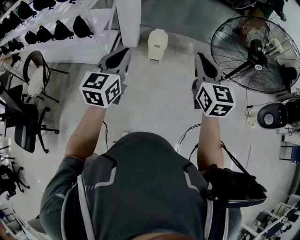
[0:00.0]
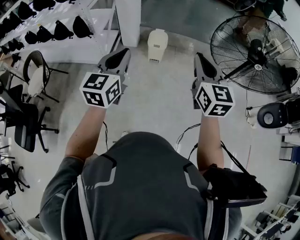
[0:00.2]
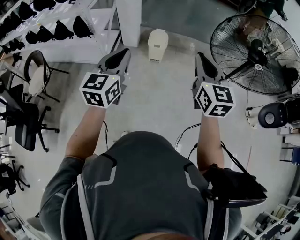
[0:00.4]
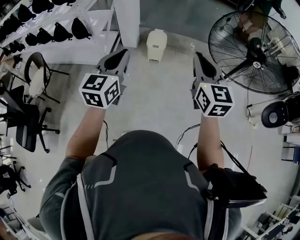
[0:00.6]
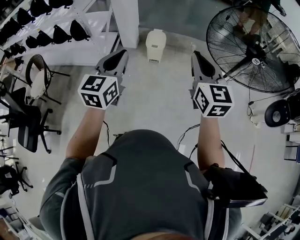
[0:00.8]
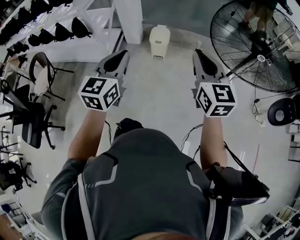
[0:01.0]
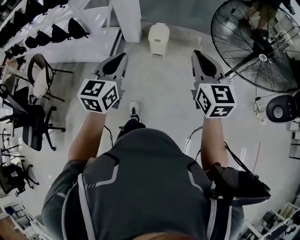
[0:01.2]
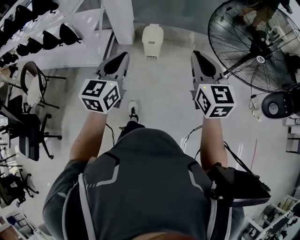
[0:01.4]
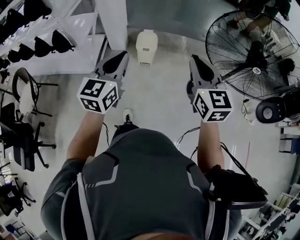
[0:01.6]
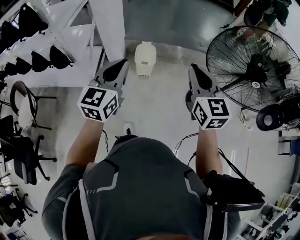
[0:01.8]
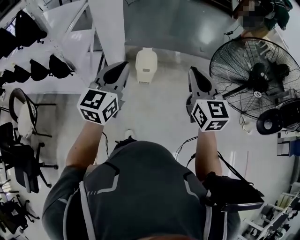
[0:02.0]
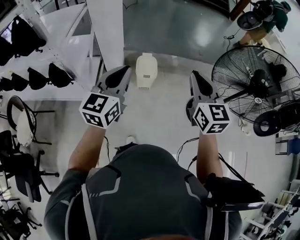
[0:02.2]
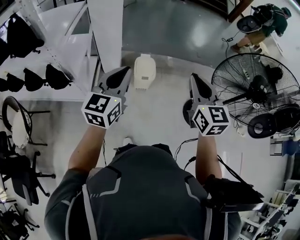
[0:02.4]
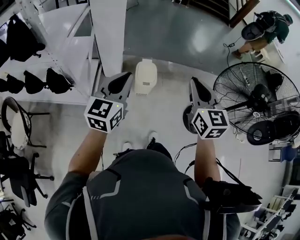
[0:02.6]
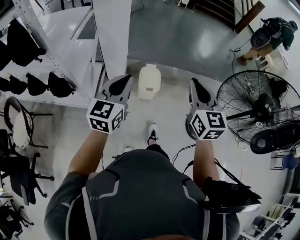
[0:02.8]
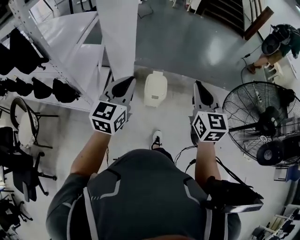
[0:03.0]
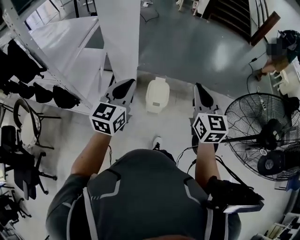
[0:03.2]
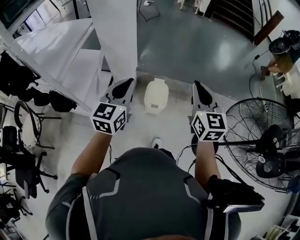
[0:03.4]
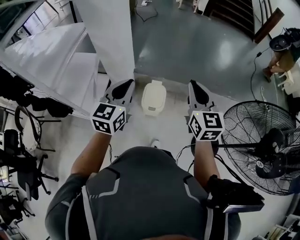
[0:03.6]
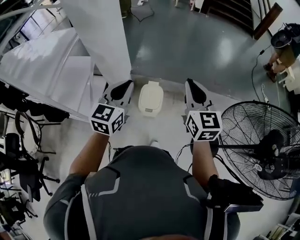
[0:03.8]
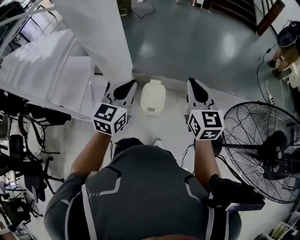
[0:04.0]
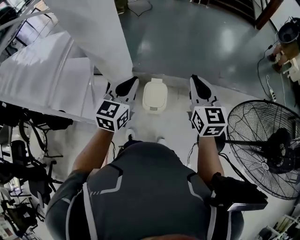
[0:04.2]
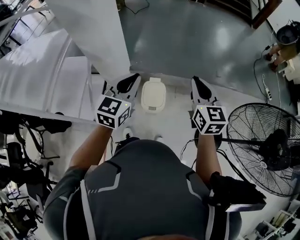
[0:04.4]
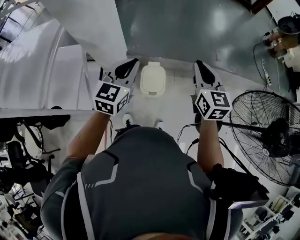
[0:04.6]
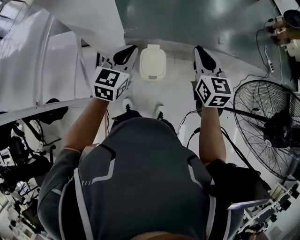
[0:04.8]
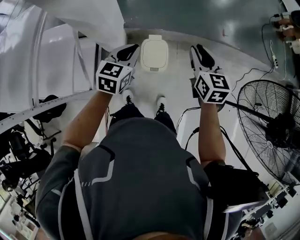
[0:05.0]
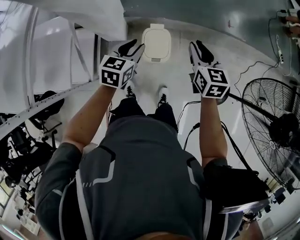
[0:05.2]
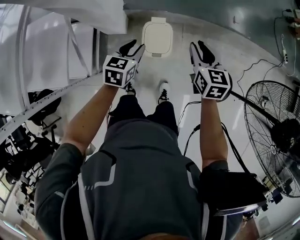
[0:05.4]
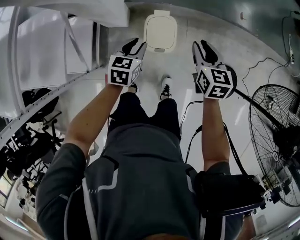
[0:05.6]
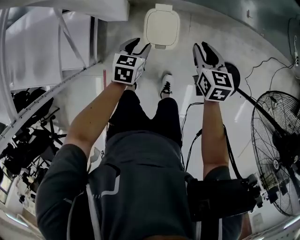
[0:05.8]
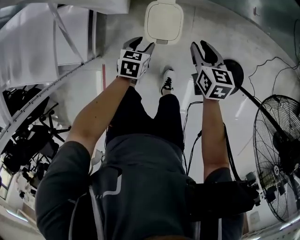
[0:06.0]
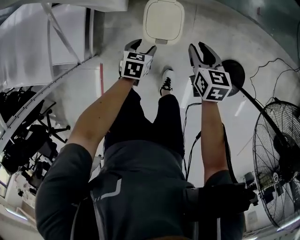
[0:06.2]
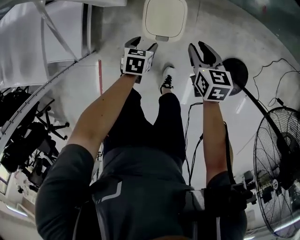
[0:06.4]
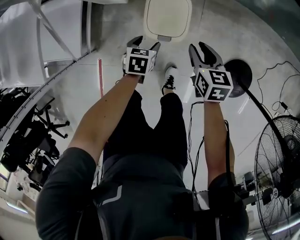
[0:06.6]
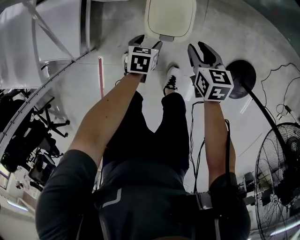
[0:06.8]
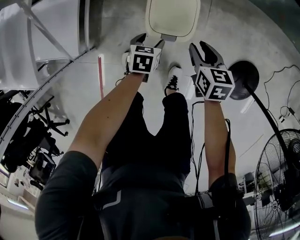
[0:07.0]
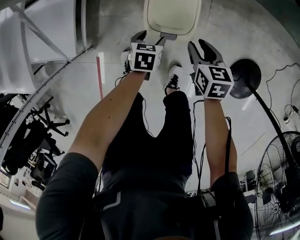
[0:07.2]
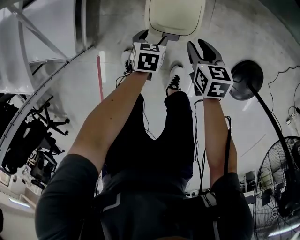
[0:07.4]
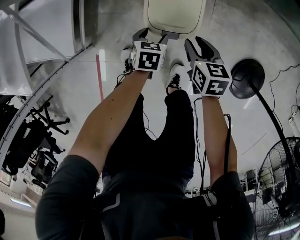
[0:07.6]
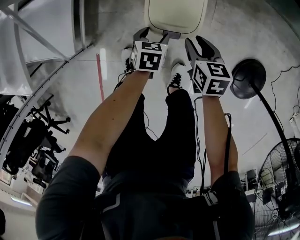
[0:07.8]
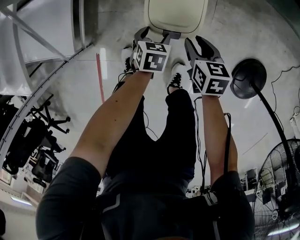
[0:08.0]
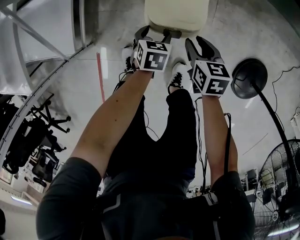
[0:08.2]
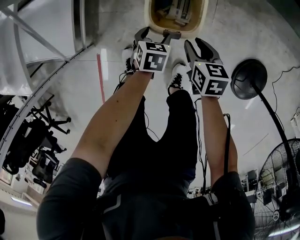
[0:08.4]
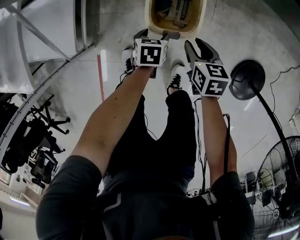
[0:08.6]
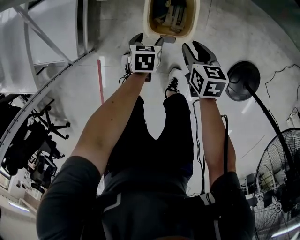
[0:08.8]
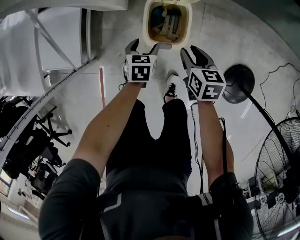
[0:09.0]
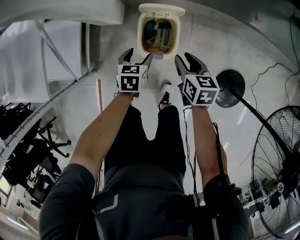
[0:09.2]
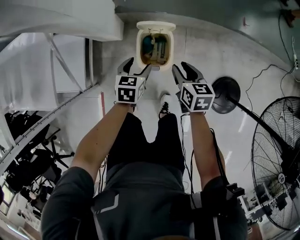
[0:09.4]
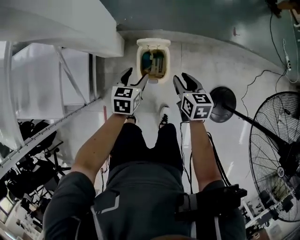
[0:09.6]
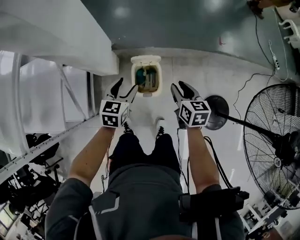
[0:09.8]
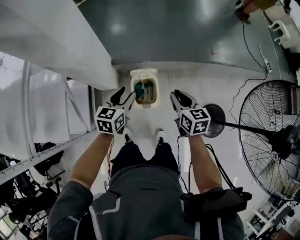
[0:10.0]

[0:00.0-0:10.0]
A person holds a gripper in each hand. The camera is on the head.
0:00.0 to 0:01.4: The right gripper goes approximately 5 cm forward. Meanwhile the left gripper moves forward and to the right, some 10 cm.
0:01.4 to 0:02.8: Both grippers travel together forward and to the left, some 35 cm.
0:02.8 to 0:04.2: The left gripper is displaced forward and to the right by roughly 30 cm. The right gripper shifts roughly 25 cm forward.
0:04.2 to 0:05.8: The two grippers go approximately 40 cm downward. The right gripper tips its fingers downward by about 30 degrees, and opens. The left gripper tips its fingers downward by some 40 degrees, and opens up.
0:05.8 to 0:07.2: The grippers both shift downward by roughly 30 cm. The left gripper swivels roughly 20 degrees, and opens its fingers.
0:07.2 to 0:08.6: The grippers make only small movements.
0:08.6 to 0:10.0: Both grippers move upward, some 40 cm. The left gripper points its fingers approximately 40 degrees further upward, while the right gripper changes its angle by some 20 degrees.

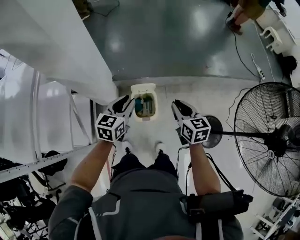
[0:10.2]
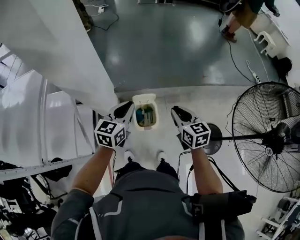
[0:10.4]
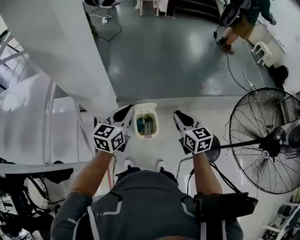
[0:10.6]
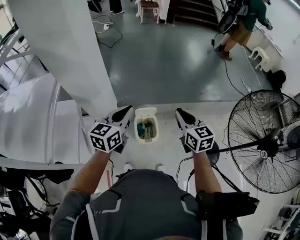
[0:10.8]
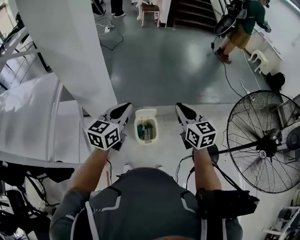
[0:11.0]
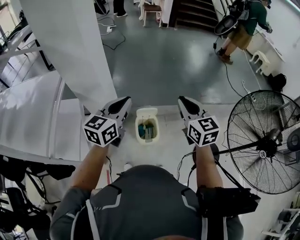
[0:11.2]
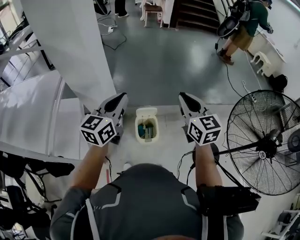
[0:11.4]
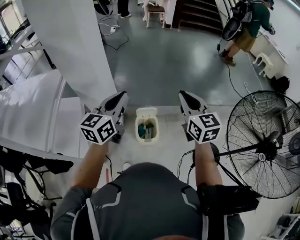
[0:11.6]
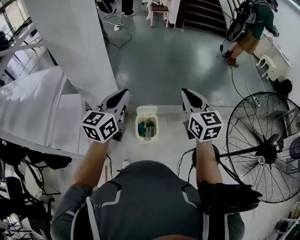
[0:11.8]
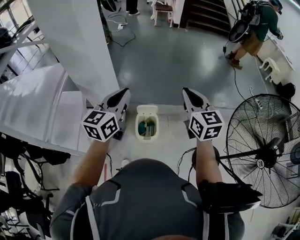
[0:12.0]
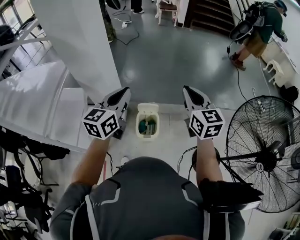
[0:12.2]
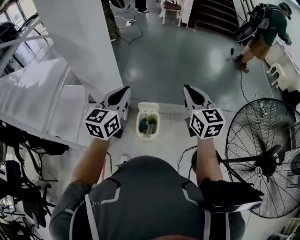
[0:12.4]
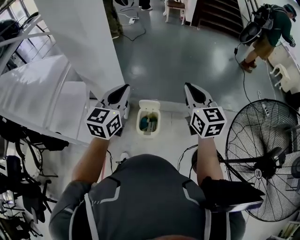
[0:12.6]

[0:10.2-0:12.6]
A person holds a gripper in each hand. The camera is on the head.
0:10.2 to 0:11.4: Both grippers move upward, some 25 cm. The left gripper rotates approximately 20 degrees, and closes, while the right gripper swivels some 30 degrees.
0:11.4 to 0:12.6: The grippers both shift to the right by some 5 cm.

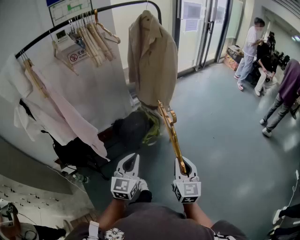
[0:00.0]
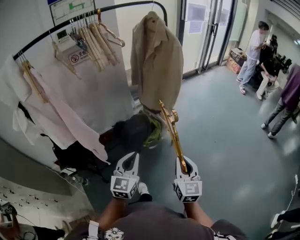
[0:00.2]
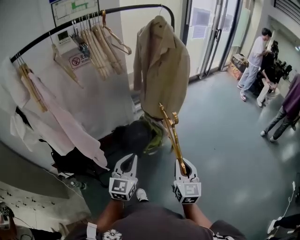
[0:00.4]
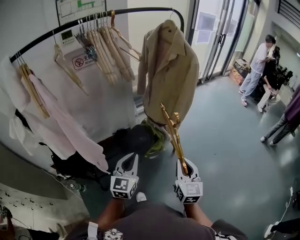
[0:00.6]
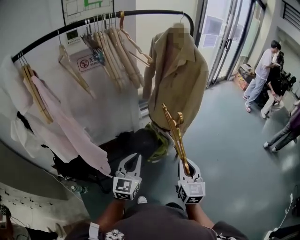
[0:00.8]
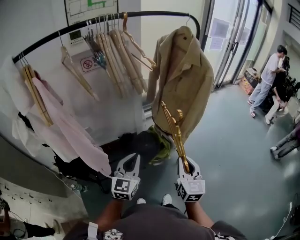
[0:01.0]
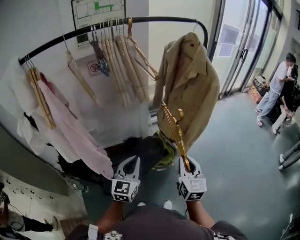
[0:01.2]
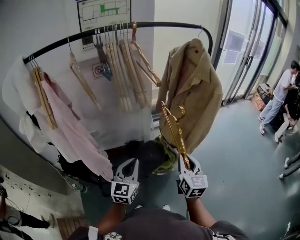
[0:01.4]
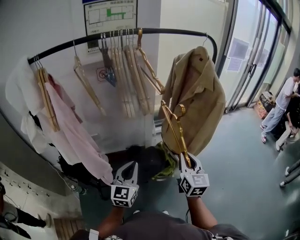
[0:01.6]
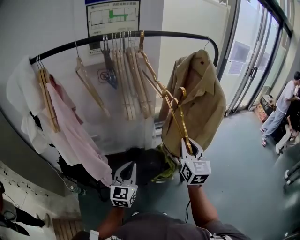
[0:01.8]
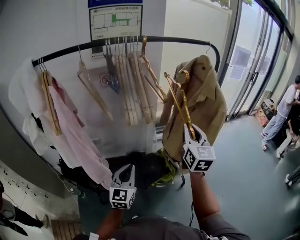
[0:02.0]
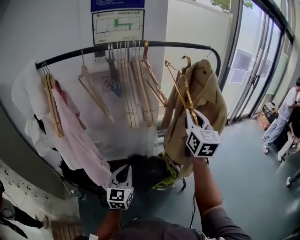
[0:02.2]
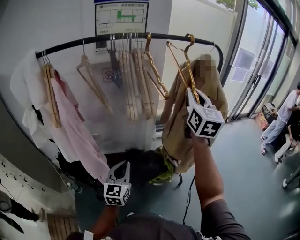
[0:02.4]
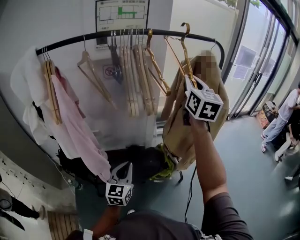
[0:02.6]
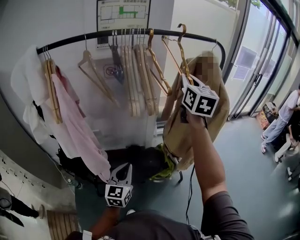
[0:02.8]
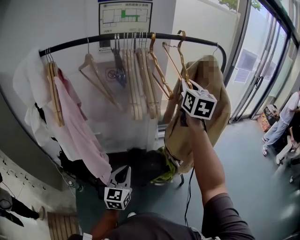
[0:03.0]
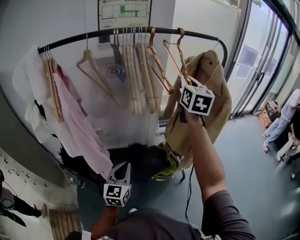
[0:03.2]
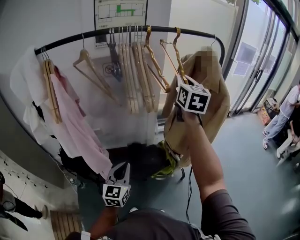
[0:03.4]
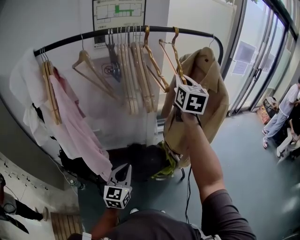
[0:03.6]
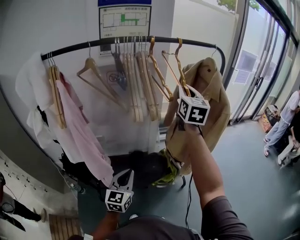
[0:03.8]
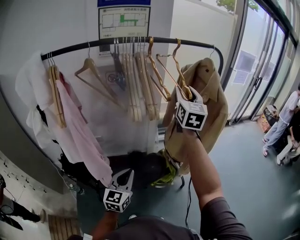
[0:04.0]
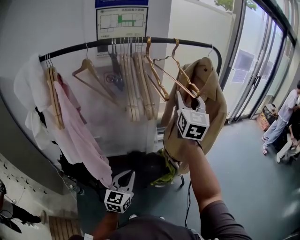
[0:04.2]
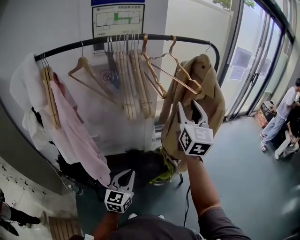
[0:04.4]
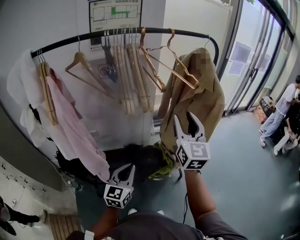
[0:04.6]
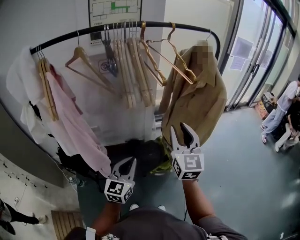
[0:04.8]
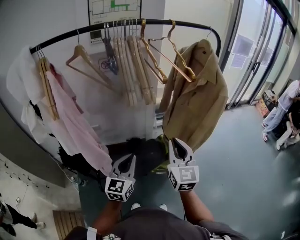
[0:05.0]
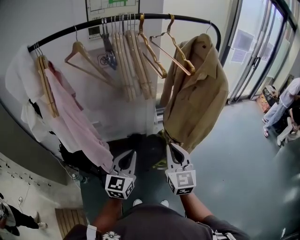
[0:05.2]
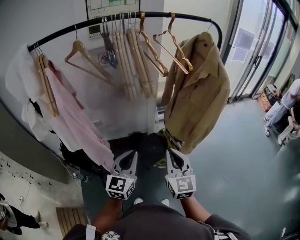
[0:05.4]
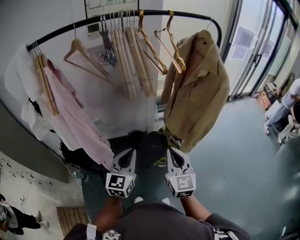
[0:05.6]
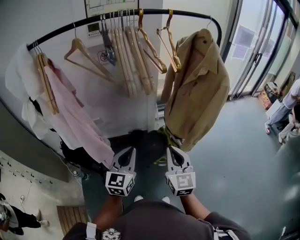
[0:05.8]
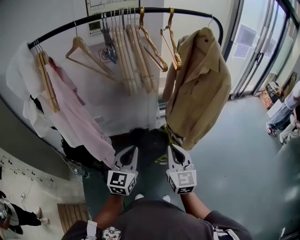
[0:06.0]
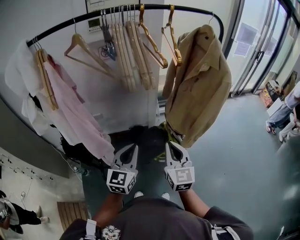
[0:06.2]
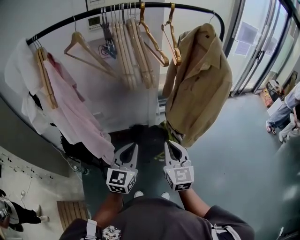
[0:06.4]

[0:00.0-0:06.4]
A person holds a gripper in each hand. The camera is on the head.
0:00.0 to 0:01.6: The right gripper heads forward, covering roughly 35 cm. Meanwhile the left gripper moves forward and to the left, about 25 cm.
0:01.6 to 0:03.2: The right gripper heads upward and forward, covering roughly 30 cm.
0:03.2 to 0:04.8: The right gripper is displaced backward and downward by approximately 25 cm, and opens up.
0:04.8 to 0:06.4: The right gripper heads downward and backward, covering some 15 cm, and closes up.

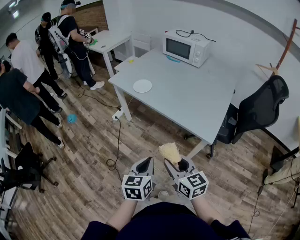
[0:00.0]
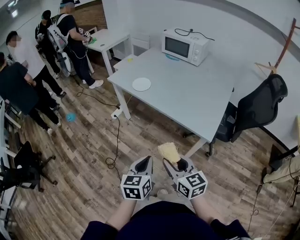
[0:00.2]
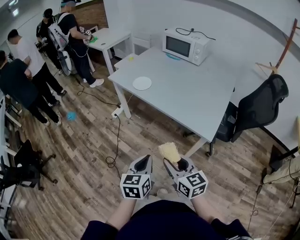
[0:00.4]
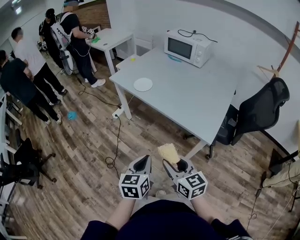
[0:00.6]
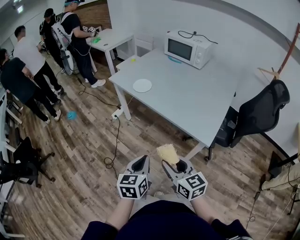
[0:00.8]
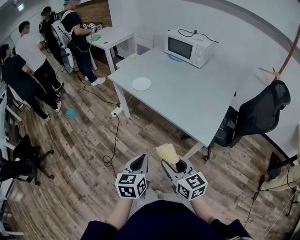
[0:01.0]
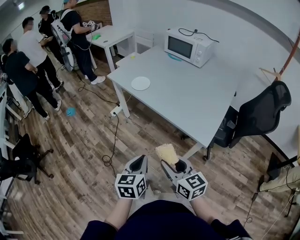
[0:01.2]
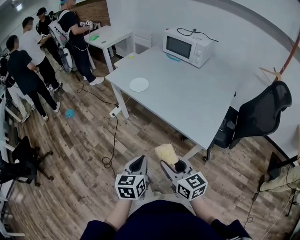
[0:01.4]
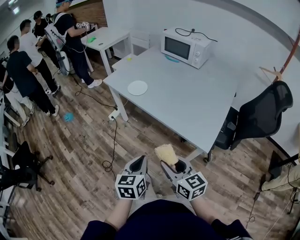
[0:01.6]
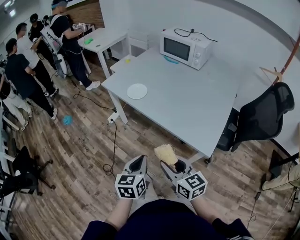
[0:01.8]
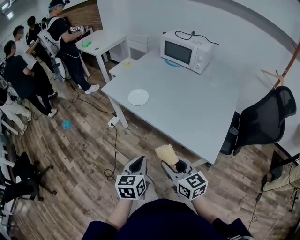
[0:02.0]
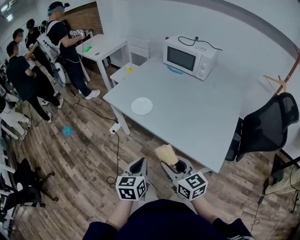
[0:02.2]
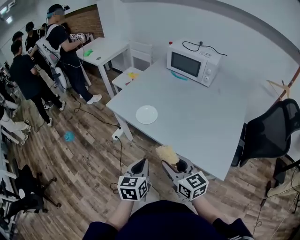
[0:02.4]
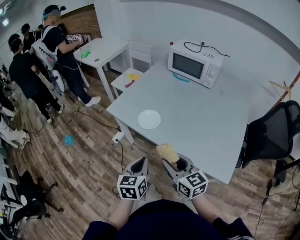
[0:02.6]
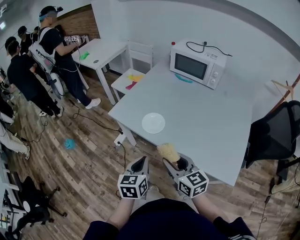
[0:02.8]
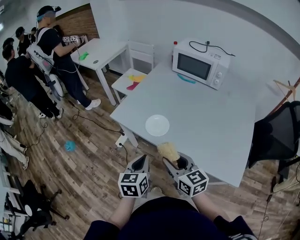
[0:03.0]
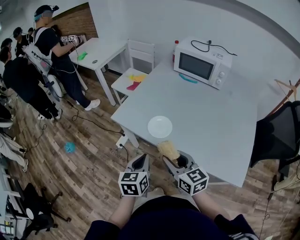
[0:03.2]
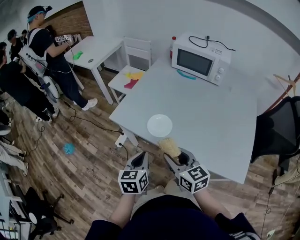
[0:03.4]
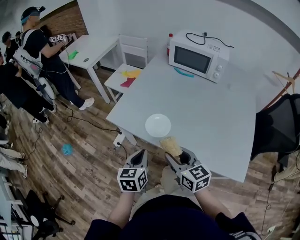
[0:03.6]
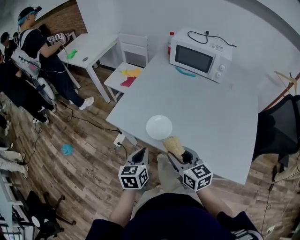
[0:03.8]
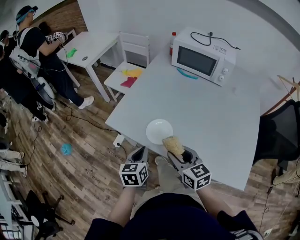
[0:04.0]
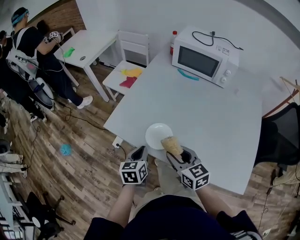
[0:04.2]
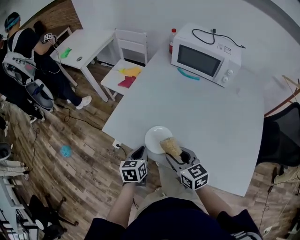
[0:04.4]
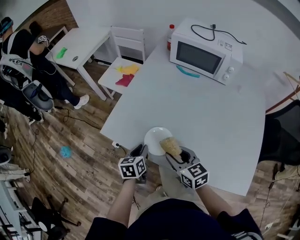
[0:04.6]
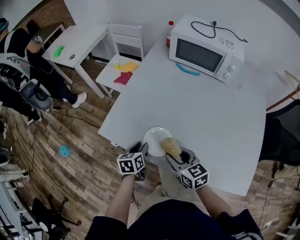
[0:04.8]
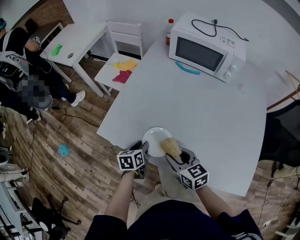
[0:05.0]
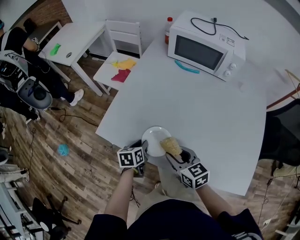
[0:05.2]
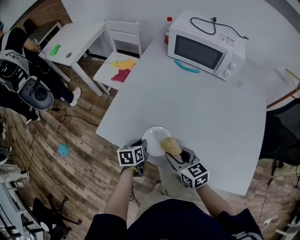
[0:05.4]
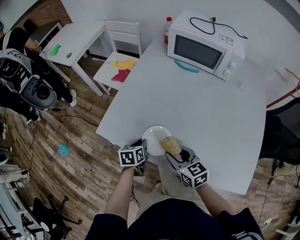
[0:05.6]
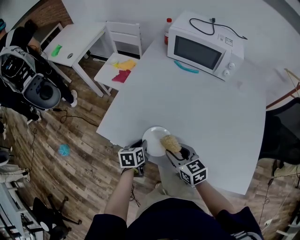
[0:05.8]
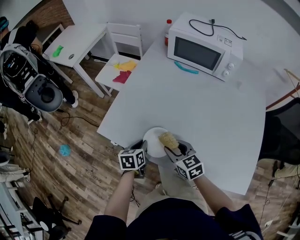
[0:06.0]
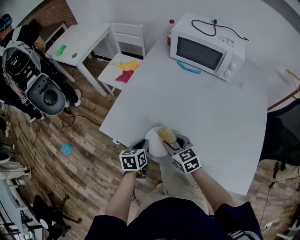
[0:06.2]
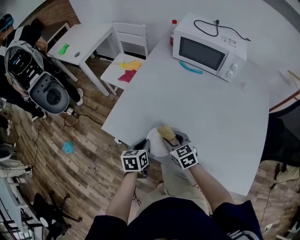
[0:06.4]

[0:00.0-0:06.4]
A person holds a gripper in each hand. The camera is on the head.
0:00.0 to 0:01.6: The right gripper moves approximately 5 cm; the left gripper travels forward by approximately 5 cm.
0:01.6 to 0:03.2: The grippers both shift forward and to the left by some 40 cm.
0:03.2 to 0:04.8: Both grippers move forward and downward, about 20 cm. The left gripper opens up.
0:04.8 to 0:06.4: The right gripper goes roughly 10 cm forward and downward.
